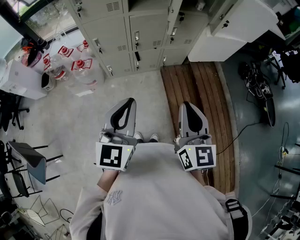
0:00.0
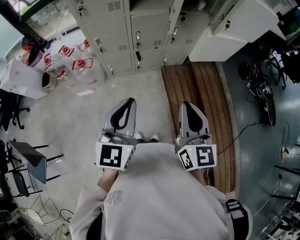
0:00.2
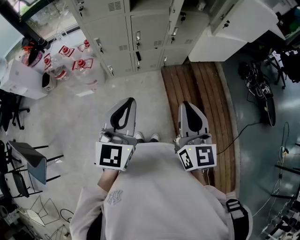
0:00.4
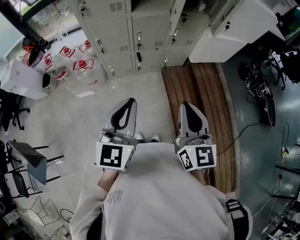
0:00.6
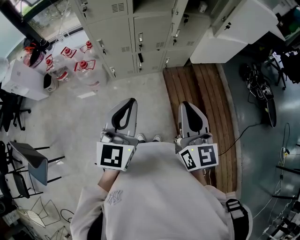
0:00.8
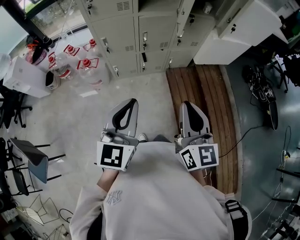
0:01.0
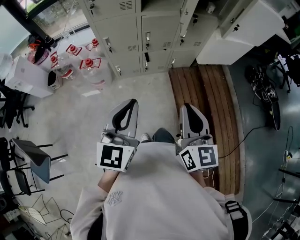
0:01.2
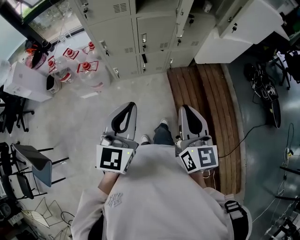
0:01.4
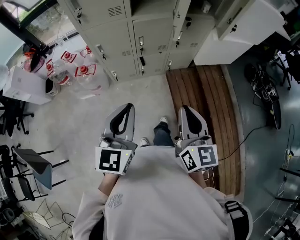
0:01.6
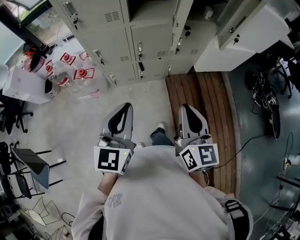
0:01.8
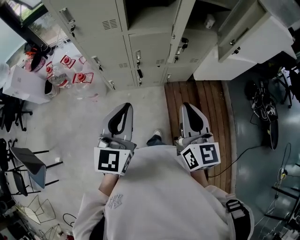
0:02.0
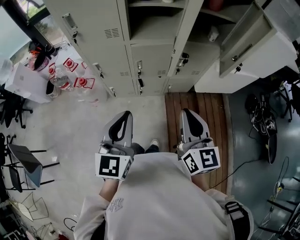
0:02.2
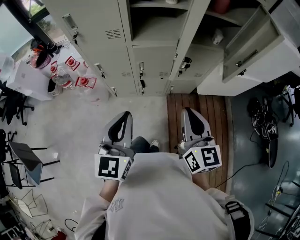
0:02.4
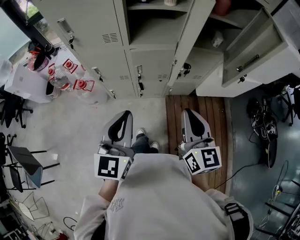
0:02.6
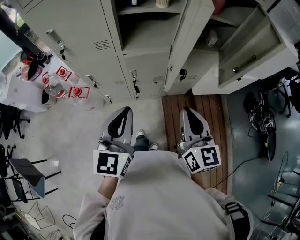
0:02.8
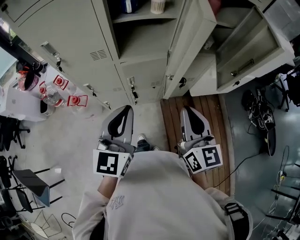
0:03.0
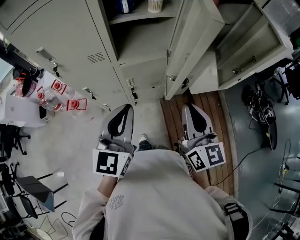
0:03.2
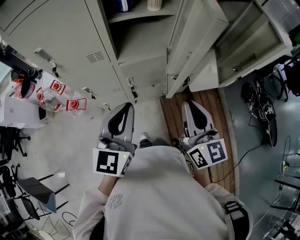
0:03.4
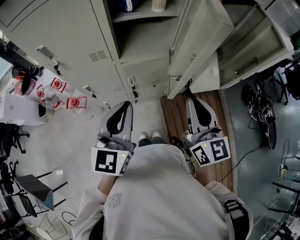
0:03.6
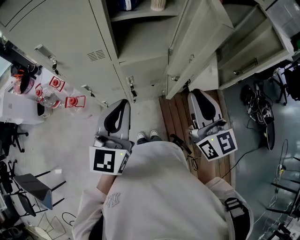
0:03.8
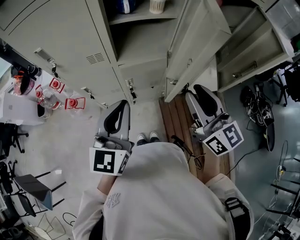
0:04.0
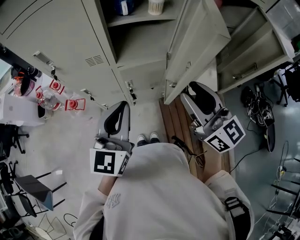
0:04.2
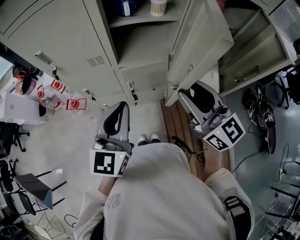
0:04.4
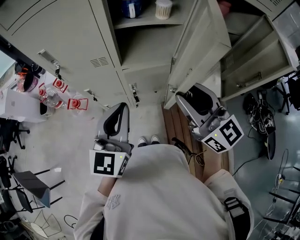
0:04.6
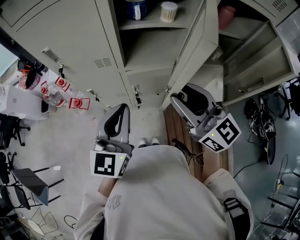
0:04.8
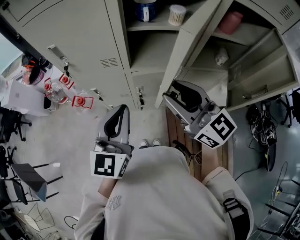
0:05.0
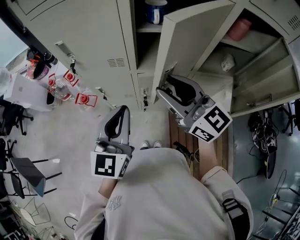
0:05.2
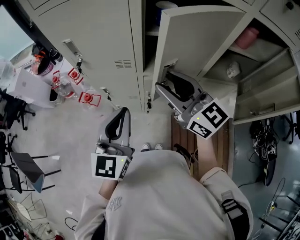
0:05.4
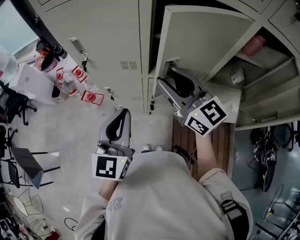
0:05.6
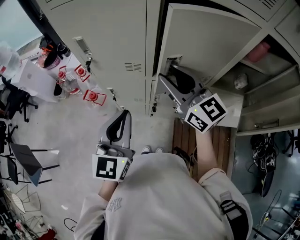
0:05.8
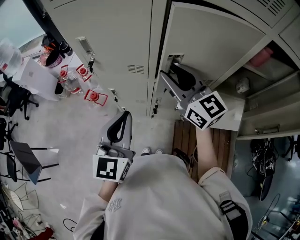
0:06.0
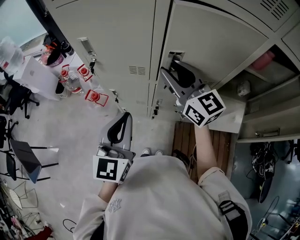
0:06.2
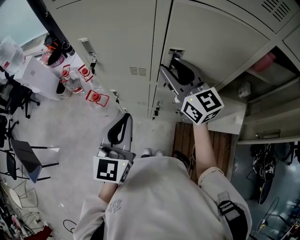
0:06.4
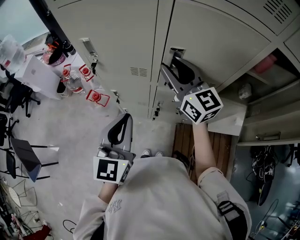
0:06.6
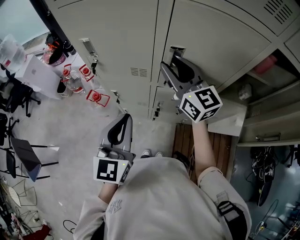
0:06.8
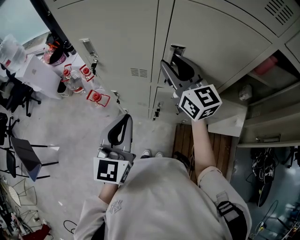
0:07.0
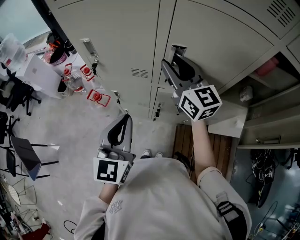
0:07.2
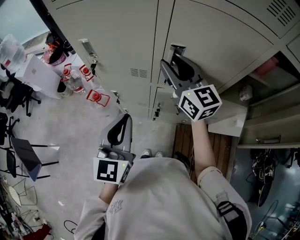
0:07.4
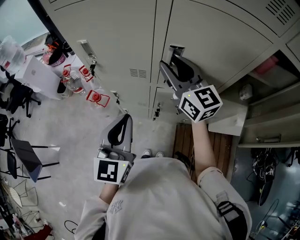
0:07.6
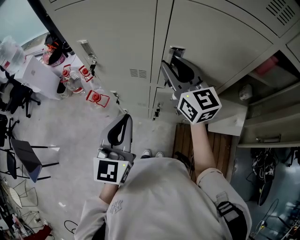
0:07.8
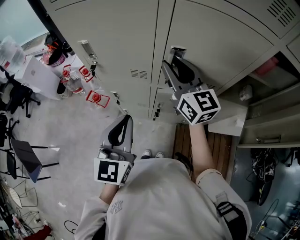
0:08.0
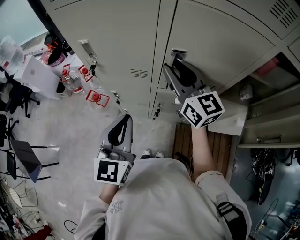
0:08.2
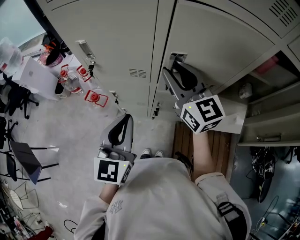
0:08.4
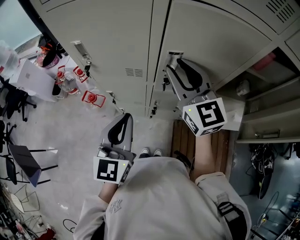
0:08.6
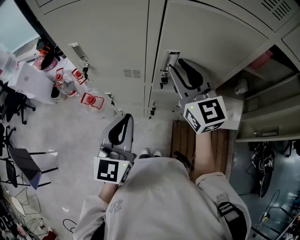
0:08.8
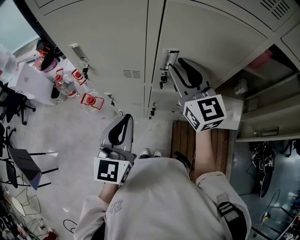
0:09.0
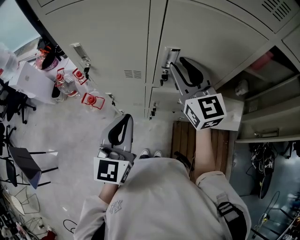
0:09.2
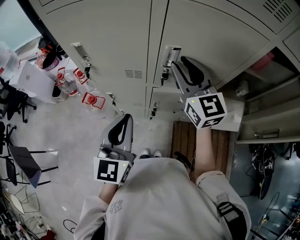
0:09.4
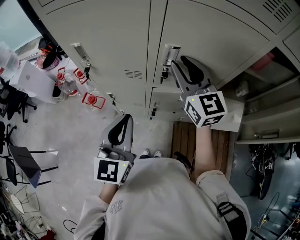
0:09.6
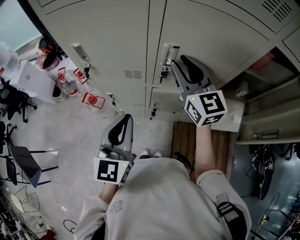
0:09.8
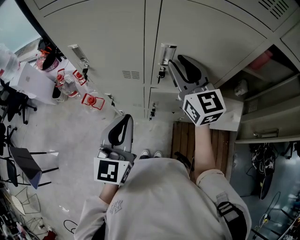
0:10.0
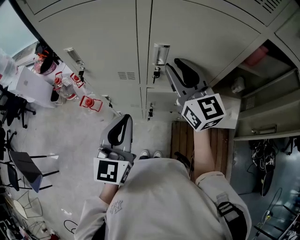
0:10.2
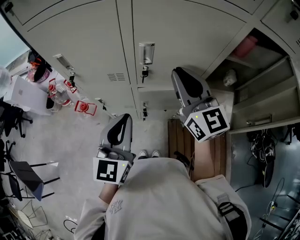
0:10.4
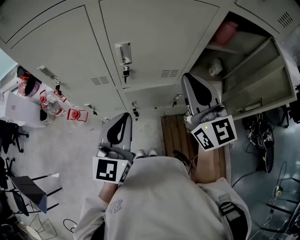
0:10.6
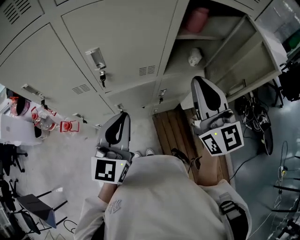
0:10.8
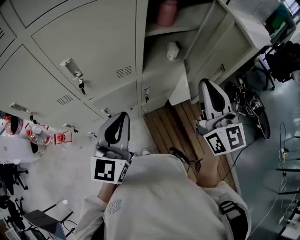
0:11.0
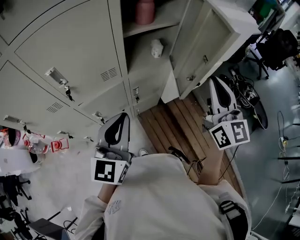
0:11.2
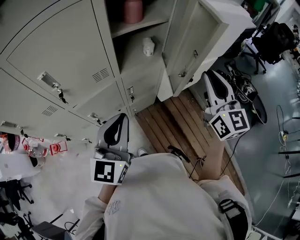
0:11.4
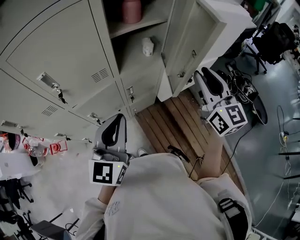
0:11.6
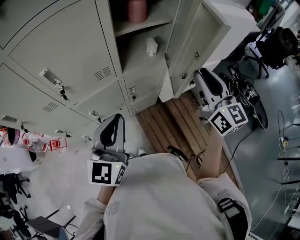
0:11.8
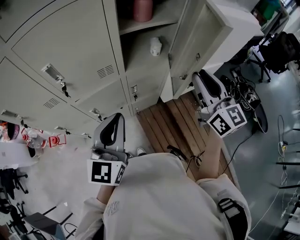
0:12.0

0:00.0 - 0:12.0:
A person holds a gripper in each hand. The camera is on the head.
0:00.0 - 0:01.6: The right gripper shifts by some 5 cm. Meanwhile the left gripper changes place by roughly 5 cm.
0:01.6 - 0:03.0: Both grippers move forward, some 25 cm.
0:03.0 - 0:04.4: The left gripper changes place by some 5 cm, while the right gripper moves forward and upward, about 10 cm, changes its angle by about 30 degrees, and opens up.
0:04.4 - 0:06.0: The left gripper moves to the left, some 10 cm. Meanwhile the right gripper shifts roughly 20 cm forward and to the left.
0:06.0 - 0:07.6: The right gripper goes approximately 5 cm forward.
0:07.6 - 0:09.0: The grippers move only a little.
0:09.0 - 0:10.4: The right gripper goes approximately 5 cm to the right, and closes its fingers.
0:10.4 - 0:12.0: The left gripper shifts by about 20 cm, and changes its angle by roughly 20 degrees; the right gripper shifts by roughly 35 cm, and rotates some 30 degrees.

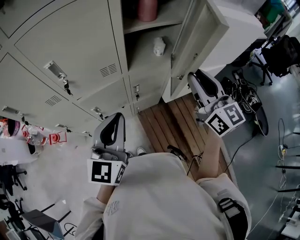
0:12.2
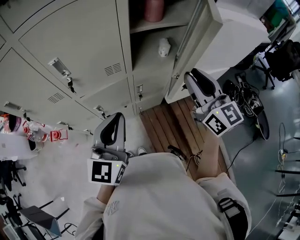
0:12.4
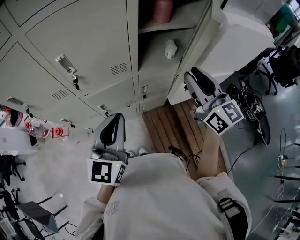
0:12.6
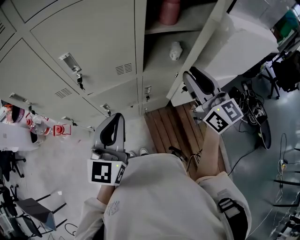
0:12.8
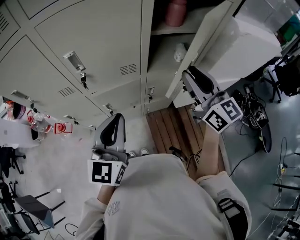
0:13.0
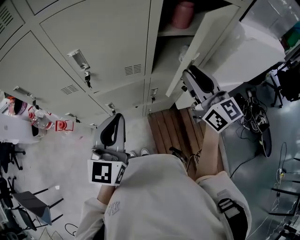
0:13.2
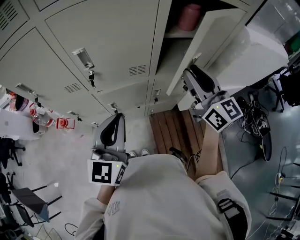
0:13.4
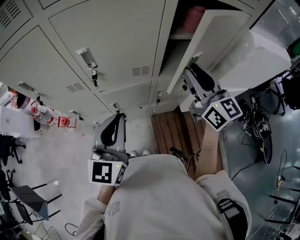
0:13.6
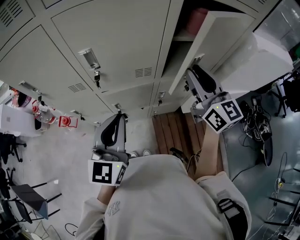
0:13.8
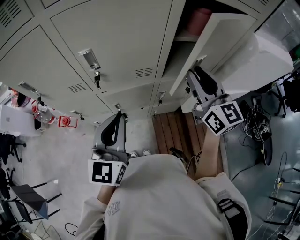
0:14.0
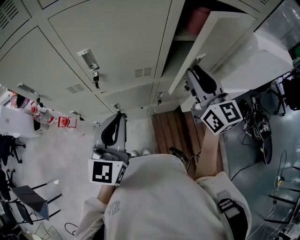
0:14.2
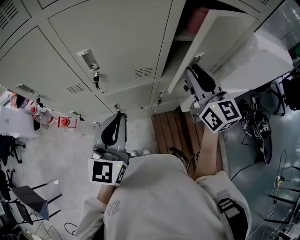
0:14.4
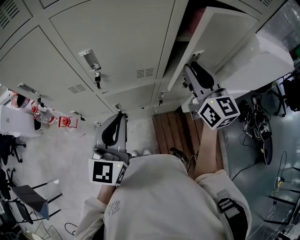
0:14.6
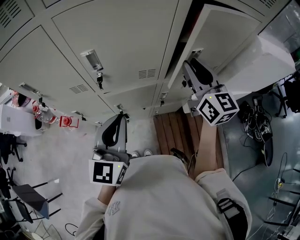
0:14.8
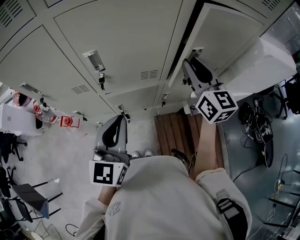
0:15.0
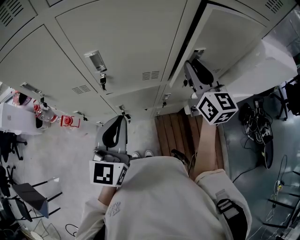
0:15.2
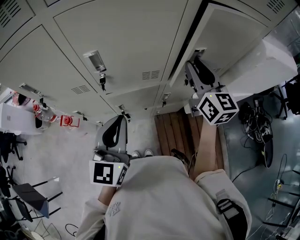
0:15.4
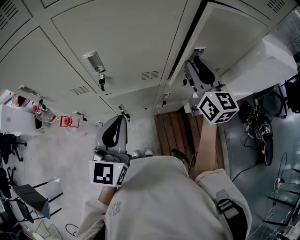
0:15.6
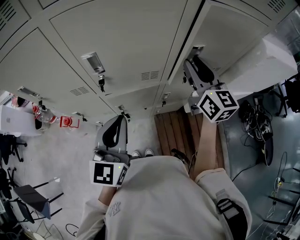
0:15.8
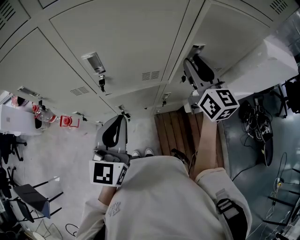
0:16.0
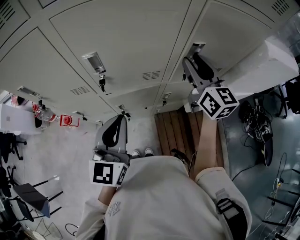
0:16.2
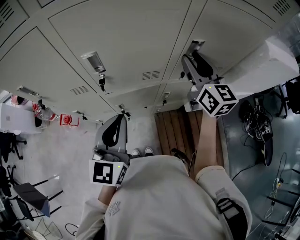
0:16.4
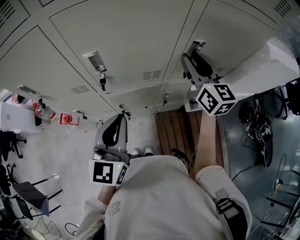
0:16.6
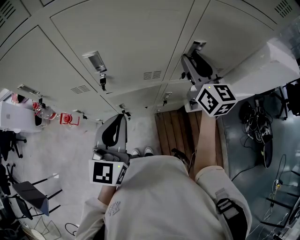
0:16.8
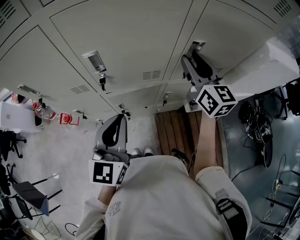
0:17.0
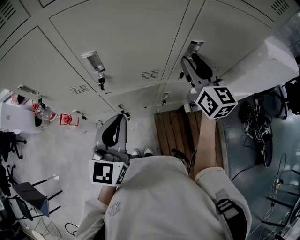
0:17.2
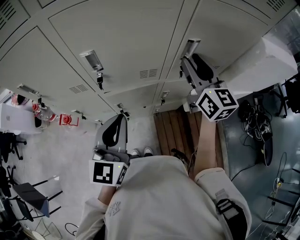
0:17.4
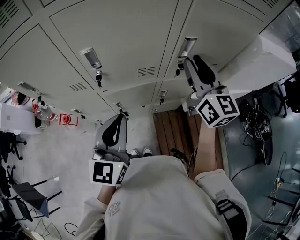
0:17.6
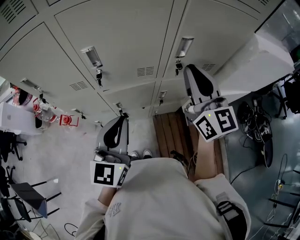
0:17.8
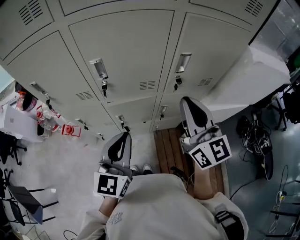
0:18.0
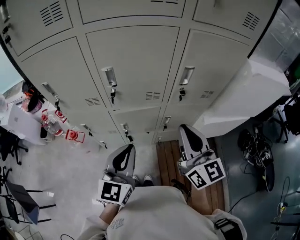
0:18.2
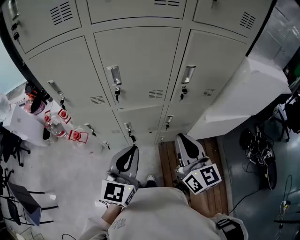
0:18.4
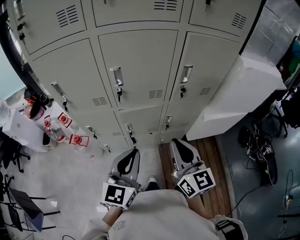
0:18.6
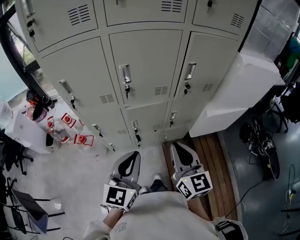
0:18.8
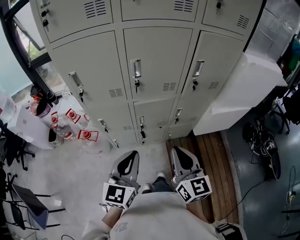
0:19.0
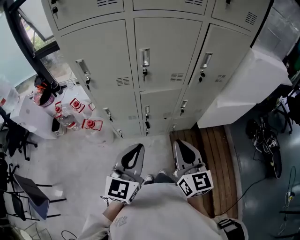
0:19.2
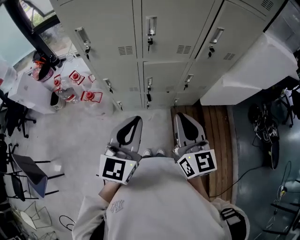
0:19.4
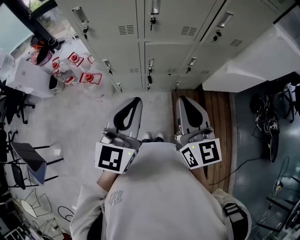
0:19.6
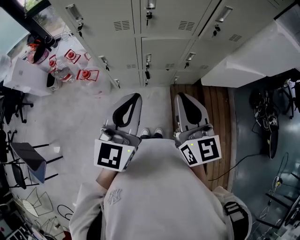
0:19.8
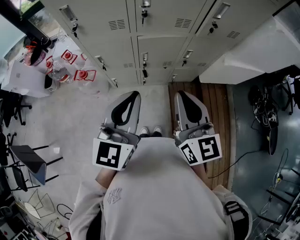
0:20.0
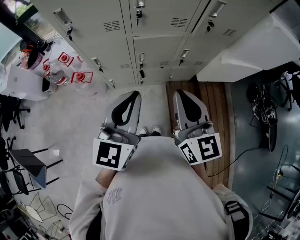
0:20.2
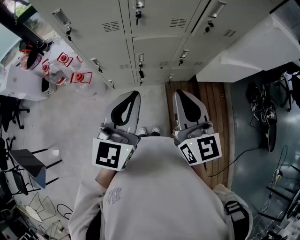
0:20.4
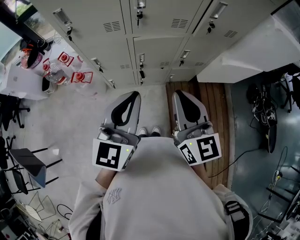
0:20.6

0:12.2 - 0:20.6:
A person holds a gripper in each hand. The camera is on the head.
0:12.2 - 0:13.6: The right gripper shifts some 15 cm to the left and forward, while the left gripper shifts approximately 10 cm to the left.
0:13.6 - 0:15.0: The right gripper goes some 5 cm forward.
0:15.0 - 0:16.4: The grippers make only small movements.
0:16.4 - 0:17.8: The right gripper heads backward, covering approximately 10 cm, and closes its fingers.
0:17.8 - 0:19.2: The left gripper is displaced backward and to the left by roughly 20 cm. The right gripper heads backward and to the left, covering some 30 cm.
0:19.2 - 0:20.6: The grippers move only a little.

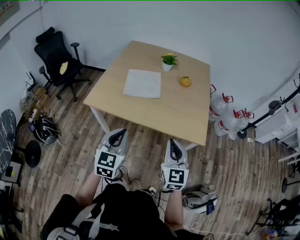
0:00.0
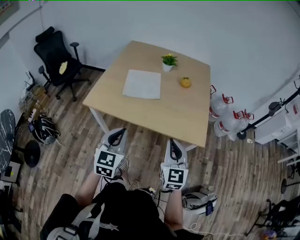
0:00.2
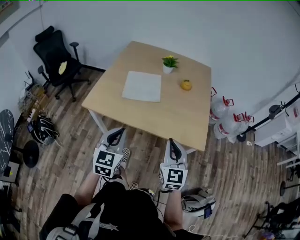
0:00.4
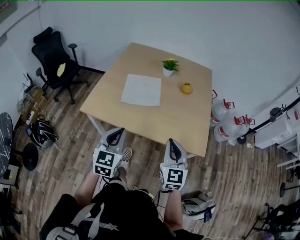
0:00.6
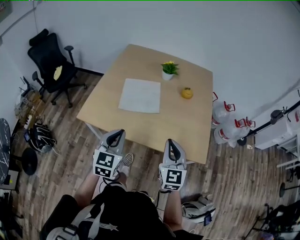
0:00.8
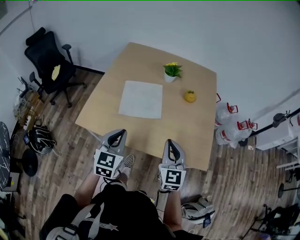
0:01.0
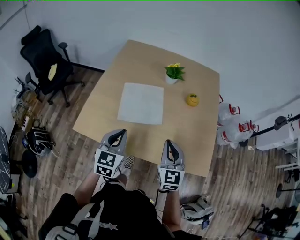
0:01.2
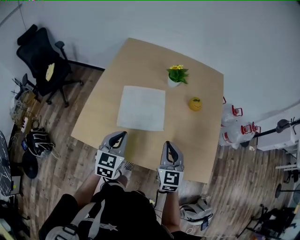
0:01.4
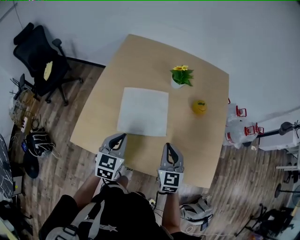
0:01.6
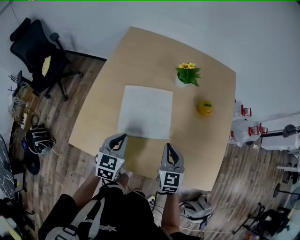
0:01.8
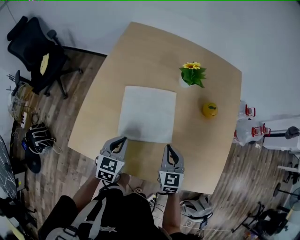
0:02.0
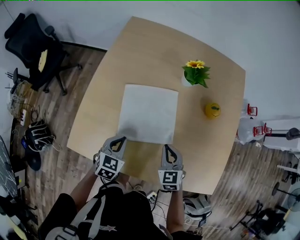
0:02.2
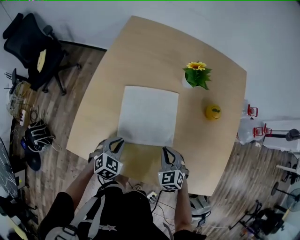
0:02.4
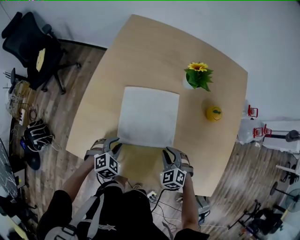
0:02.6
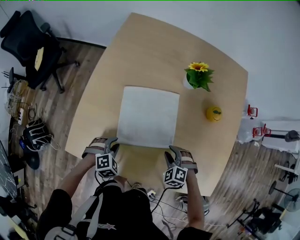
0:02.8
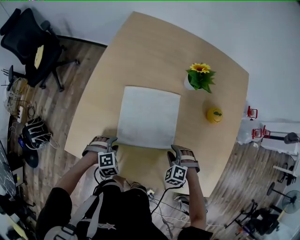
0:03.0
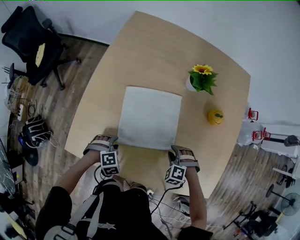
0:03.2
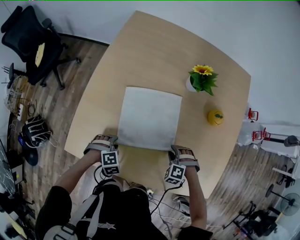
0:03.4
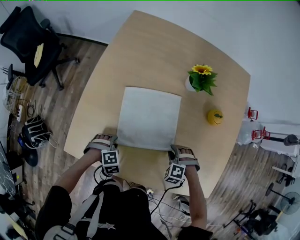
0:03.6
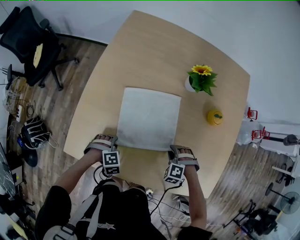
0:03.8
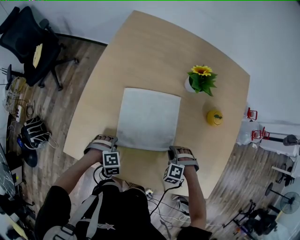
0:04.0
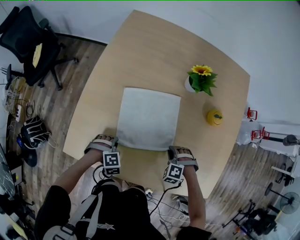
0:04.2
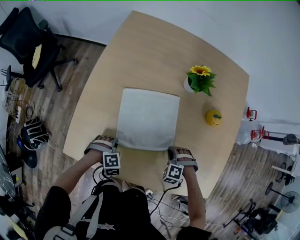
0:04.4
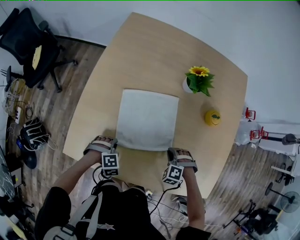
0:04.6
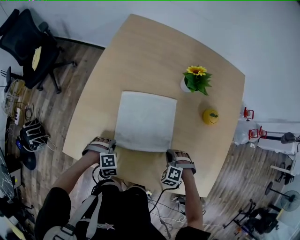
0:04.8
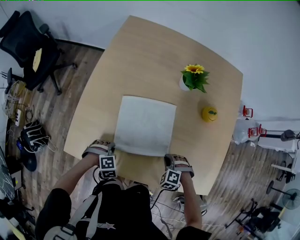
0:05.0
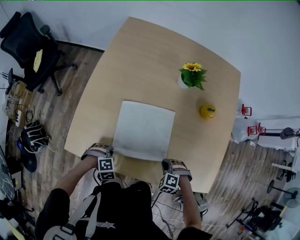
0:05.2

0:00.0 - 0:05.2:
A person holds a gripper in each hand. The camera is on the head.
0:00.0 - 0:01.8: The right gripper shifts by approximately 40 cm.
0:01.8 - 0:03.4: The right gripper shifts approximately 20 cm downward, twists some 70 degrees counterclockwise, seen from behind, and opens up.
0:03.4 - 0:05.2: The right gripper changes place by about 10 cm, and closes its fingers.
